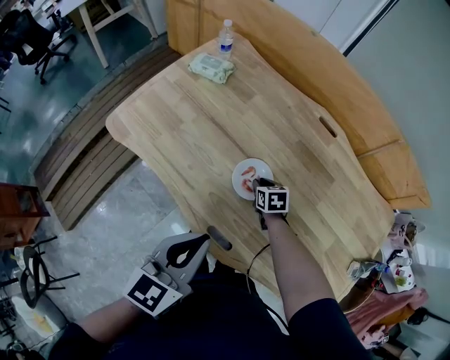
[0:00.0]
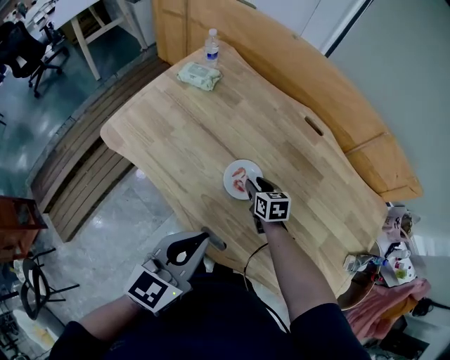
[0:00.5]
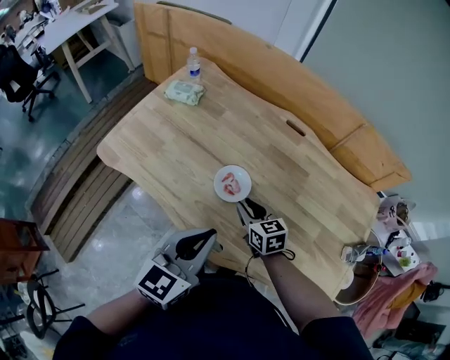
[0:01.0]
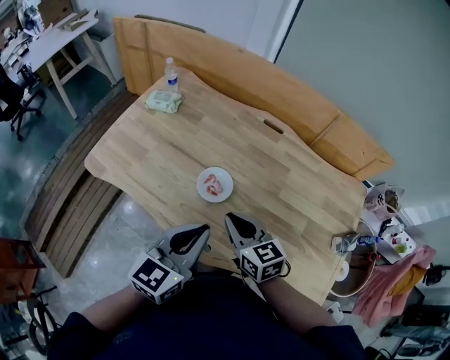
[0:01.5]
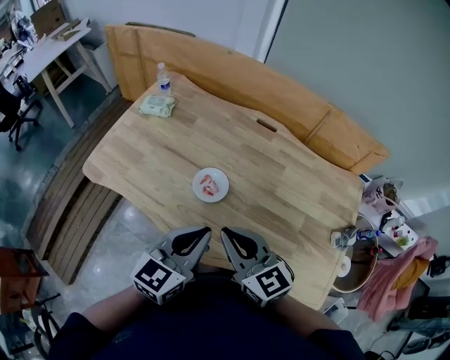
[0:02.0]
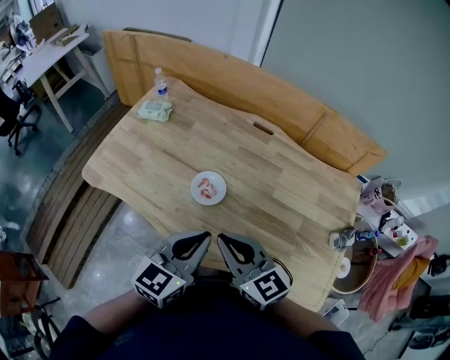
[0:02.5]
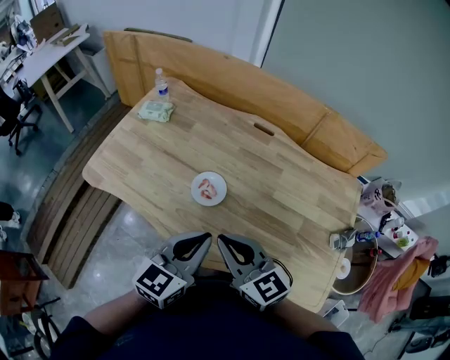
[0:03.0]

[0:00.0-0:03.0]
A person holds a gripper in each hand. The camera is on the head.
0:00.0 to 0:01.5: The left gripper is displaced to the right by approximately 10 cm, while the right gripper travels upward and backward by roughly 30 cm, and angles its fingers upward, by about 30 degrees.
0:01.5 to 0:03.0: The right gripper shifts some 10 cm upward and backward.

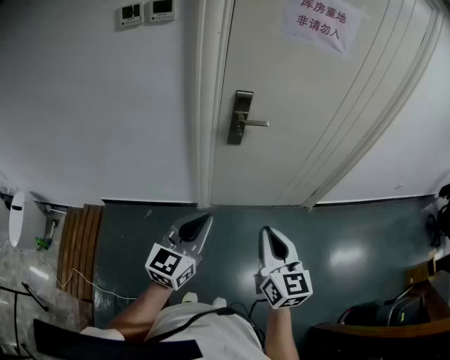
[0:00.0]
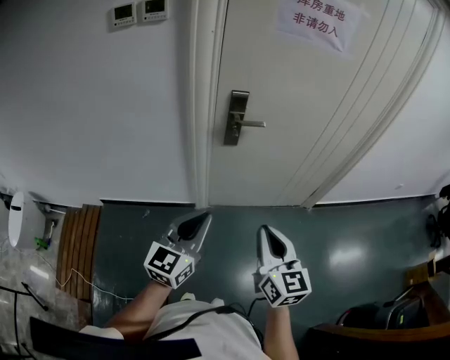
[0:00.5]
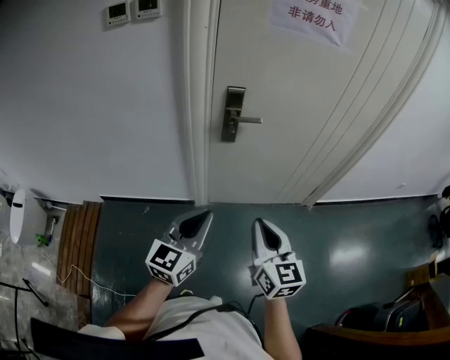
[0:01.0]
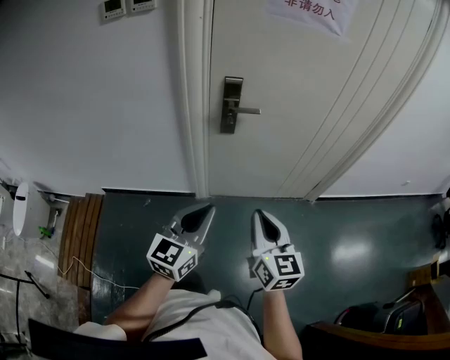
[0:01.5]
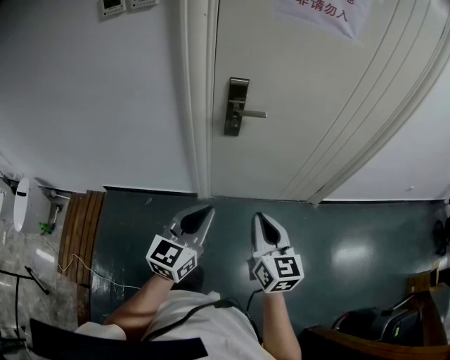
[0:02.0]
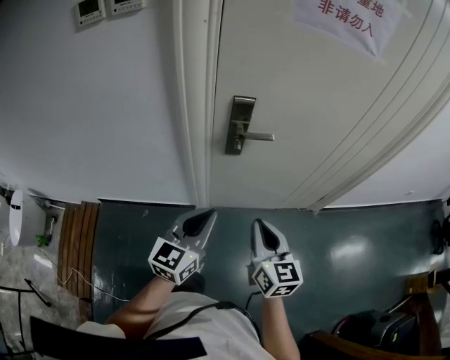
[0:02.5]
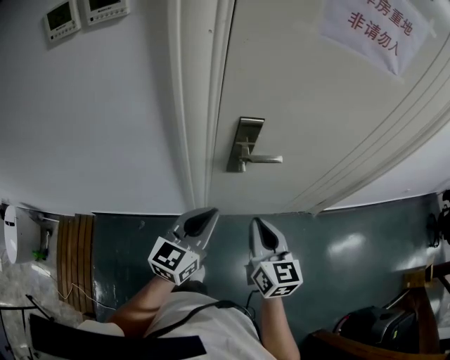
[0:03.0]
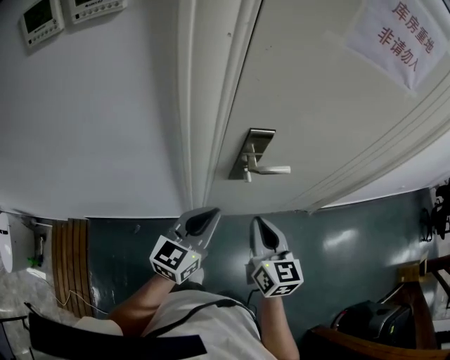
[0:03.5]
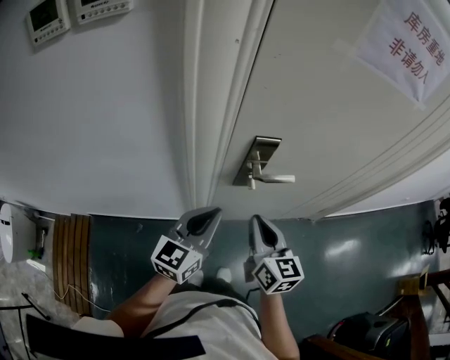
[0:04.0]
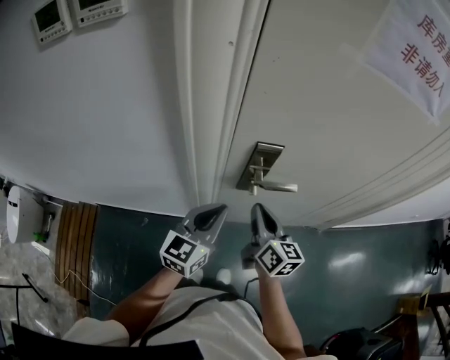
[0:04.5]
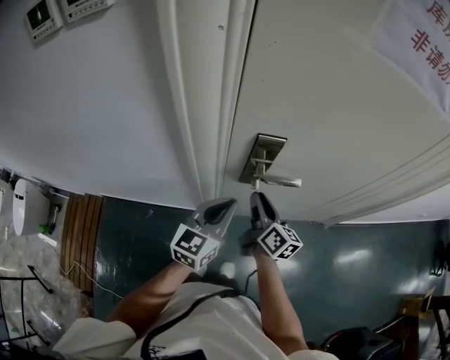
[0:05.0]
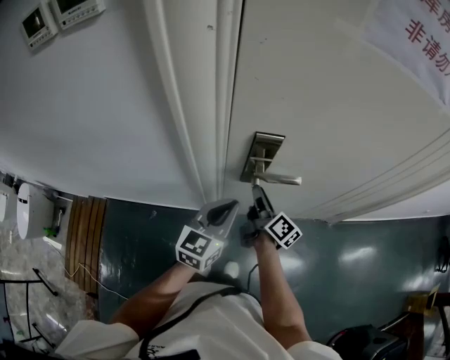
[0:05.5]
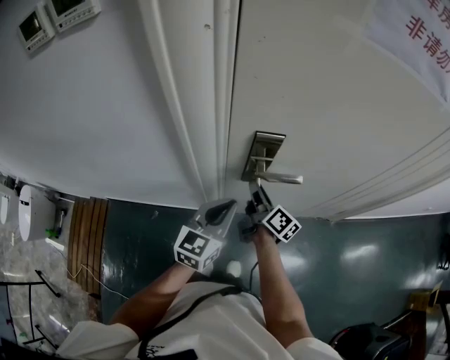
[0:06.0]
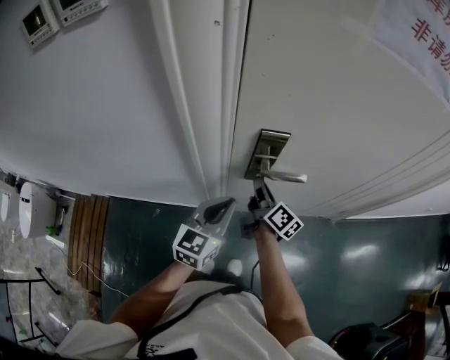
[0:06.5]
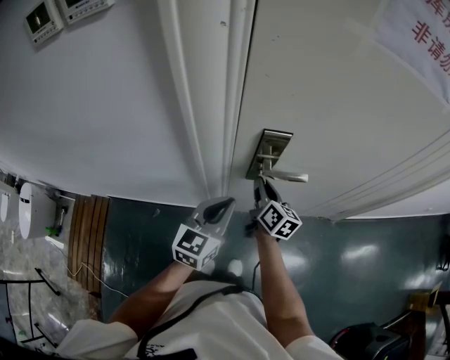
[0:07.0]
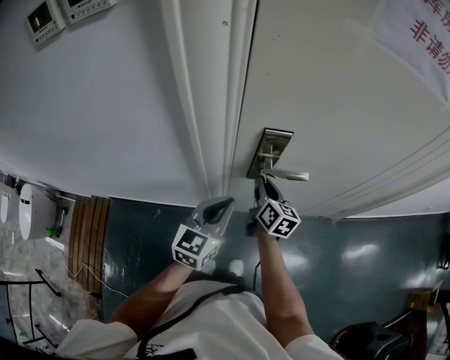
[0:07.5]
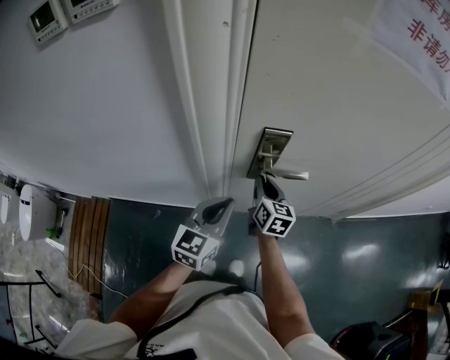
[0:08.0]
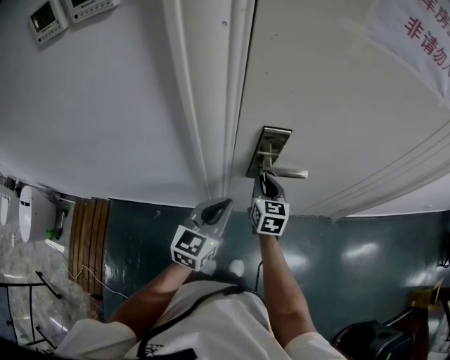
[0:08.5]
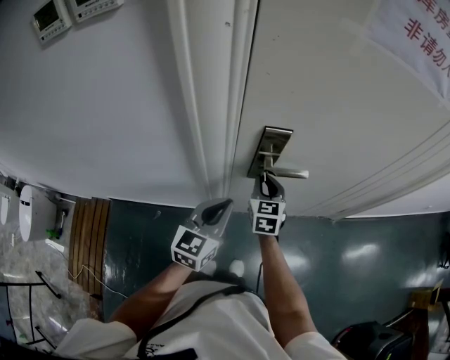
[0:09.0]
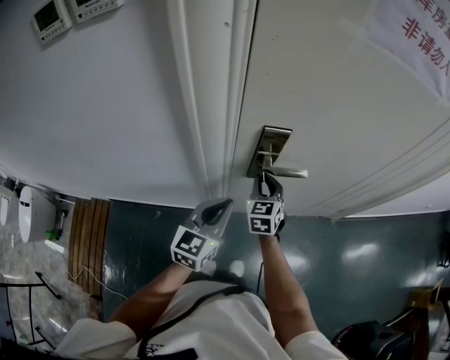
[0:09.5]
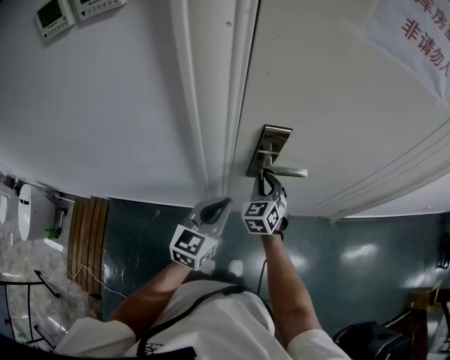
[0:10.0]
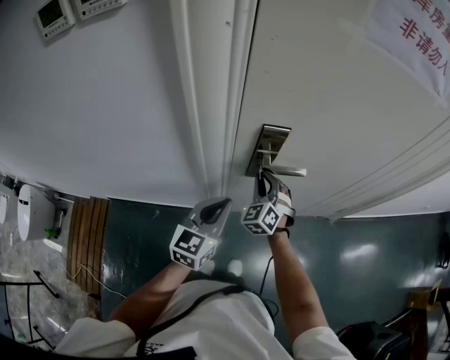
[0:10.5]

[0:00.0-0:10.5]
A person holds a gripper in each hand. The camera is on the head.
0:00.0 to 0:02.0: The left gripper moves forward and to the right, some 10 cm. The right gripper goes roughly 10 cm forward and downward.
0:02.0 to 0:04.0: Both grippers move forward and to the left, approximately 30 cm.
0:04.0 to 0:06.5: The left gripper travels downward by some 5 cm, while the right gripper shifts some 20 cm forward and downward, and twists roughly 40 degrees clockwise, seen from behind.
0:06.5 to 0:08.5: The right gripper twists some 50 degrees counterclockwise, seen from behind.
0:08.5 to 0:10.5: The right gripper twists about 50 degrees counterclockwise, seen from behind.

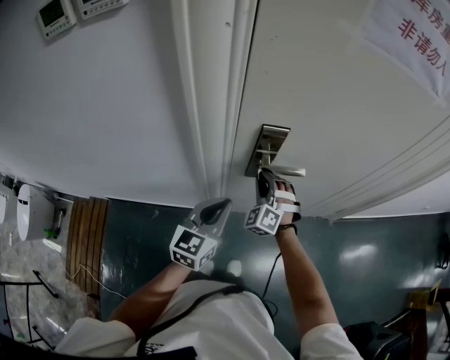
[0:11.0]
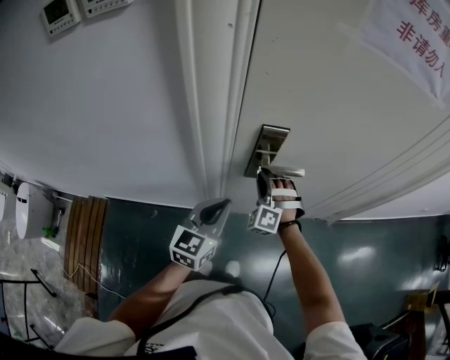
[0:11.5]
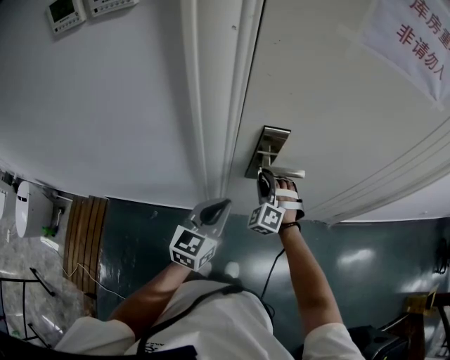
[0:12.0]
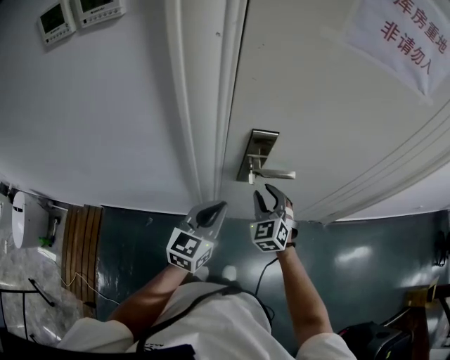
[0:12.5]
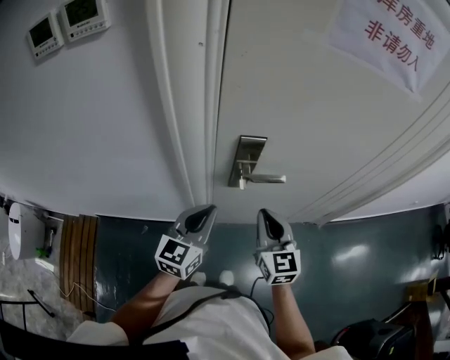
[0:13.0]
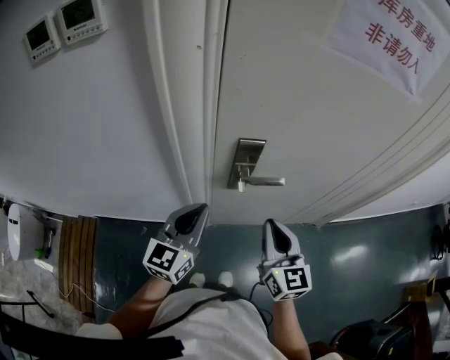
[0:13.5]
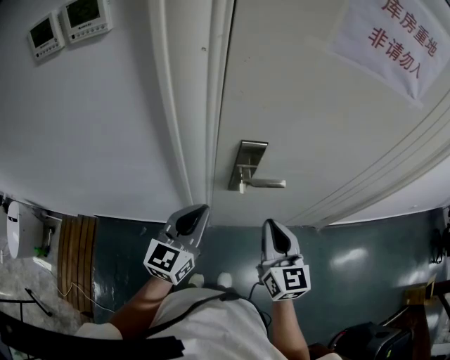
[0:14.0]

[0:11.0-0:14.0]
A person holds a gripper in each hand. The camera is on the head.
0:11.0 to 0:12.5: The right gripper moves approximately 5 cm, and turns by some 30 degrees.
0:12.5 to 0:14.0: The right gripper moves upward and backward, some 15 cm, twists approximately 40 degrees clockwise, seen from behind, and closes up. The left gripper moves upward, some 5 cm.

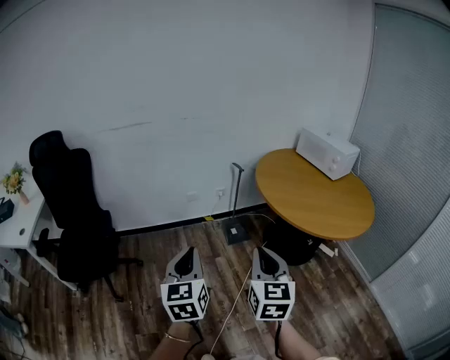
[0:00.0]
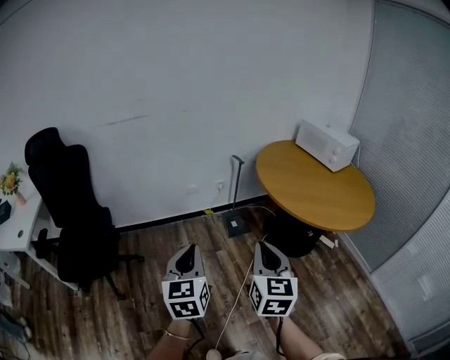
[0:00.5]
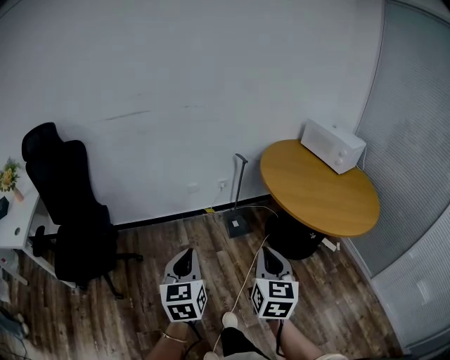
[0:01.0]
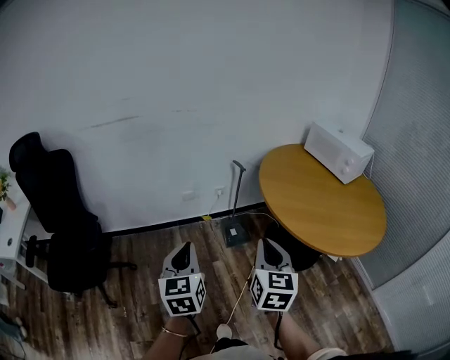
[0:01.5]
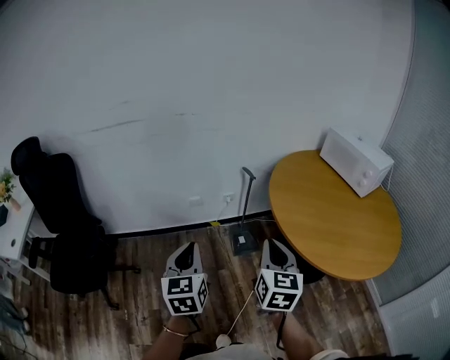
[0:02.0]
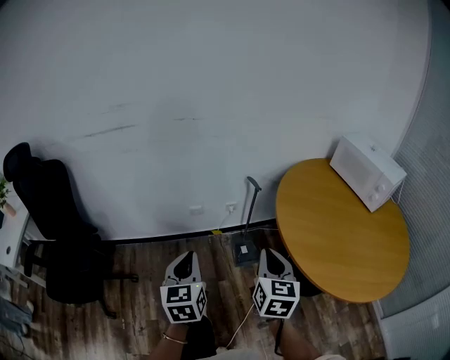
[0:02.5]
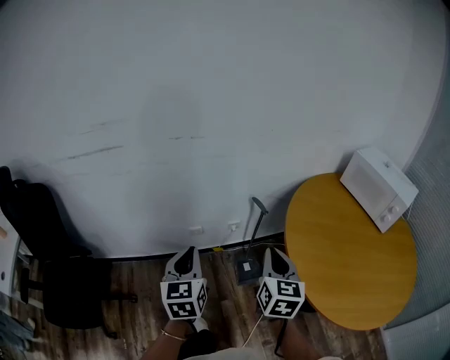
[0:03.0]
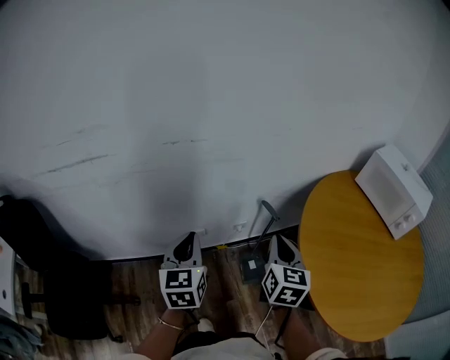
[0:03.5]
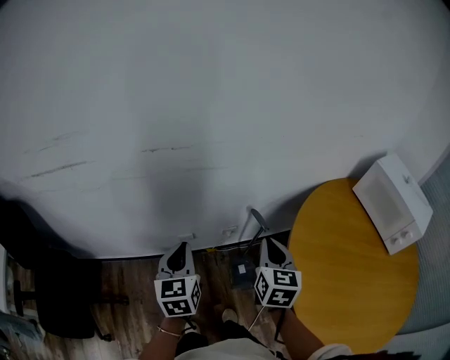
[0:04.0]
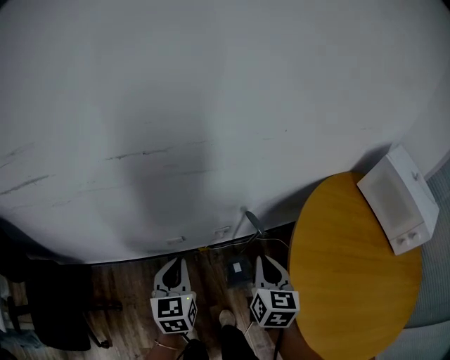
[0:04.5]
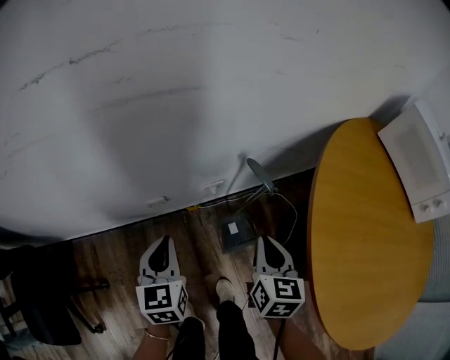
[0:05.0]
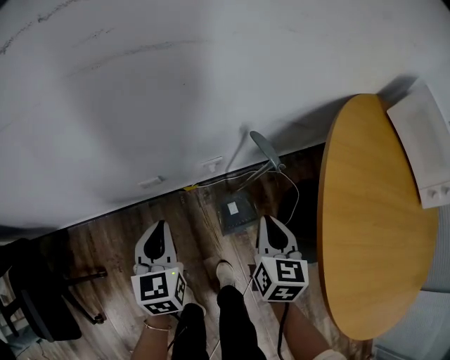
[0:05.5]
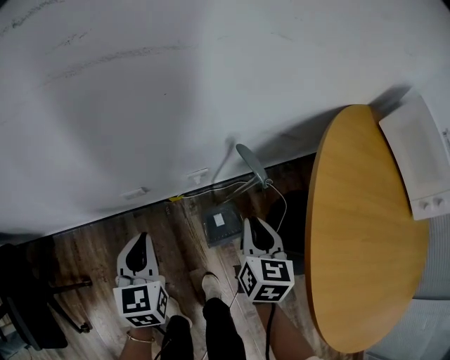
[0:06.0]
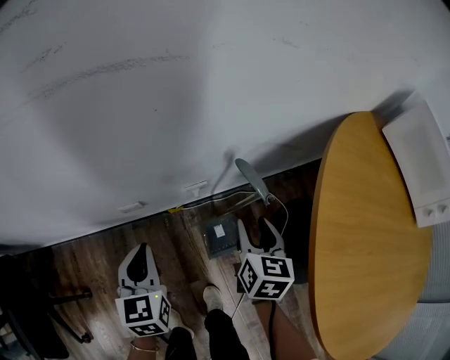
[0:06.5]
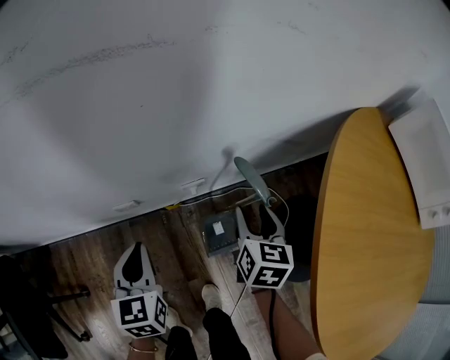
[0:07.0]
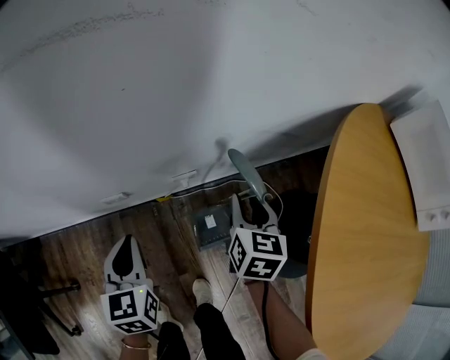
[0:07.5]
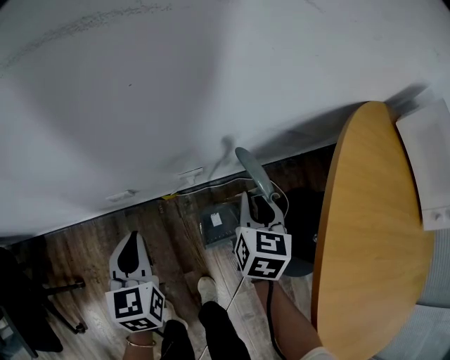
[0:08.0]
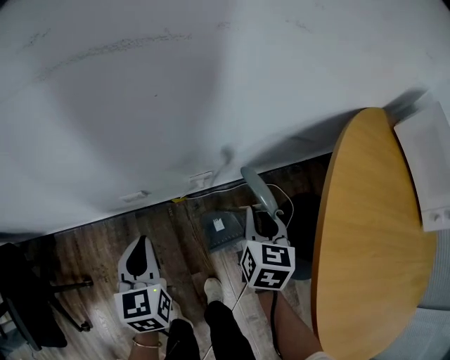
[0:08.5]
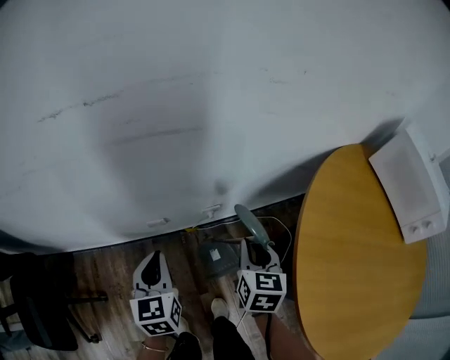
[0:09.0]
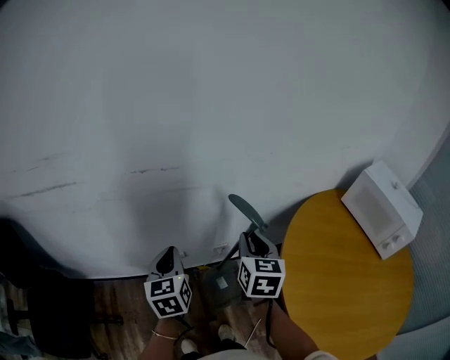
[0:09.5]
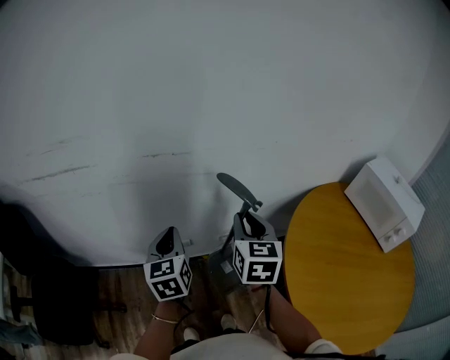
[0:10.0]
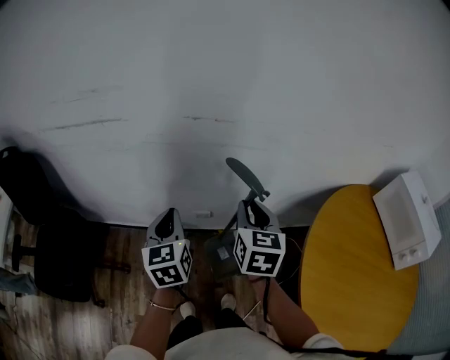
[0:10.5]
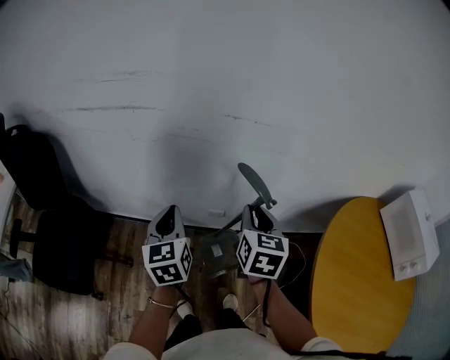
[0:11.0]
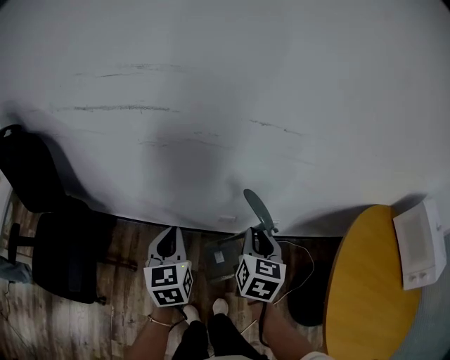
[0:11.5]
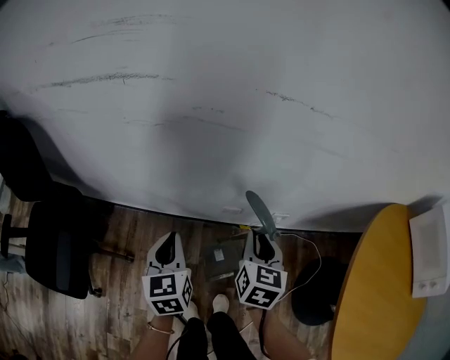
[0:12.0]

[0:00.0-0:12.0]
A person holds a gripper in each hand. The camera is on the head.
0:00.0 to 0:02.0: Both grippers move forward, some 25 cm.
0:02.0 to 0:04.0: Both grippers are carried forward, some 40 cm.
0:04.0 to 0:06.0: Both grippers travel together downward, about 25 cm.
0:06.0 to 0:08.0: The right gripper moves forward and downward, some 10 cm, and opens, then closes once more; the left gripper ends up about 5 cm from where it was.
0:08.0 to 0:10.0: The grippers both shift upward by roughly 35 cm. The right gripper changes its angle by about 20 degrees.
0:10.0 to 0:12.0: The left gripper shifts some 25 cm to the left and downward, while the right gripper travels downward and to the left by about 30 cm.
